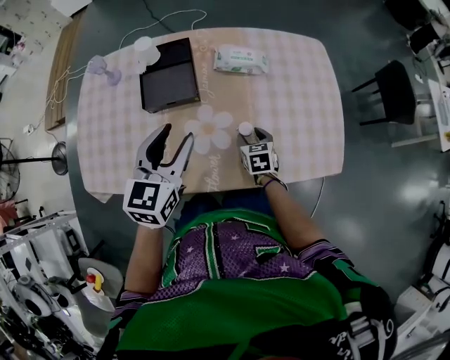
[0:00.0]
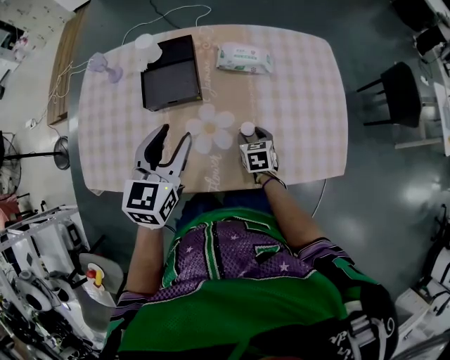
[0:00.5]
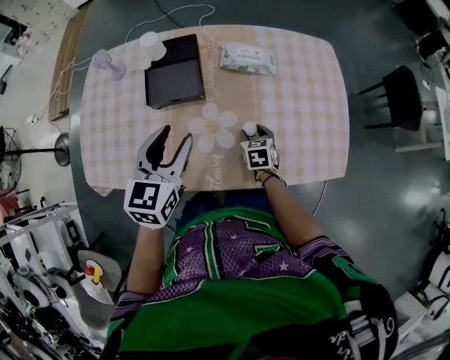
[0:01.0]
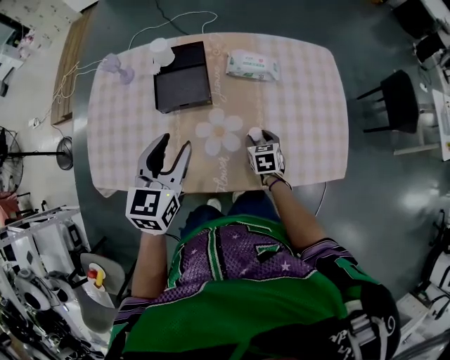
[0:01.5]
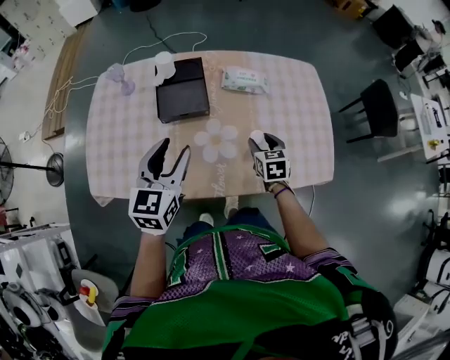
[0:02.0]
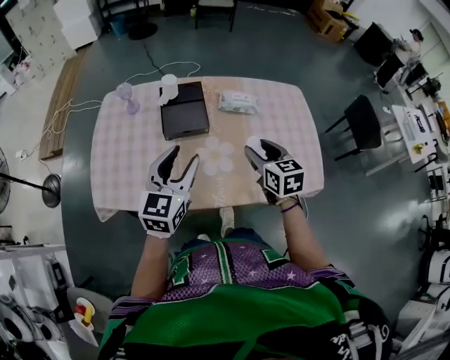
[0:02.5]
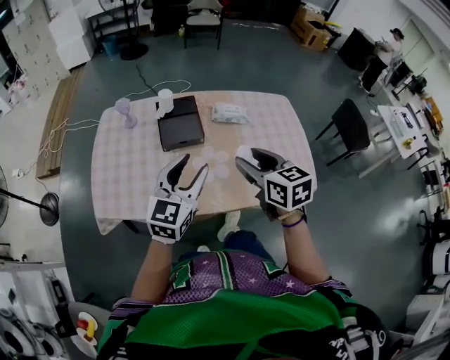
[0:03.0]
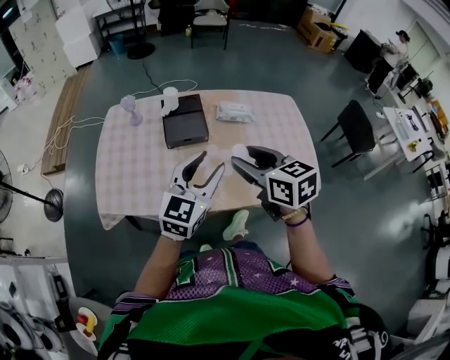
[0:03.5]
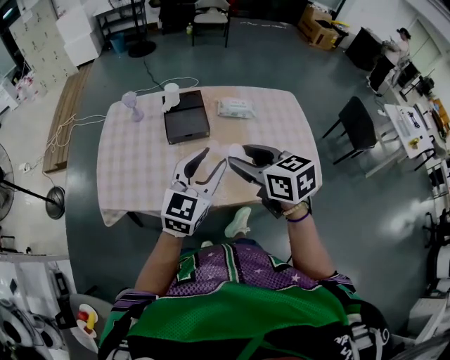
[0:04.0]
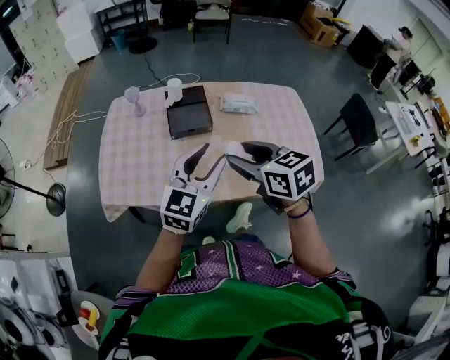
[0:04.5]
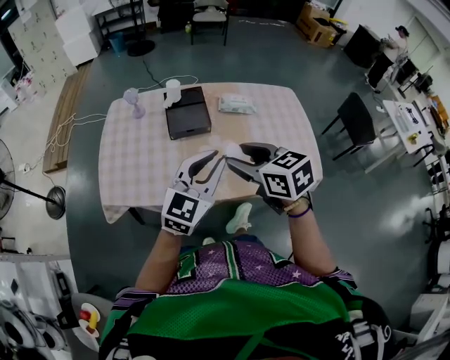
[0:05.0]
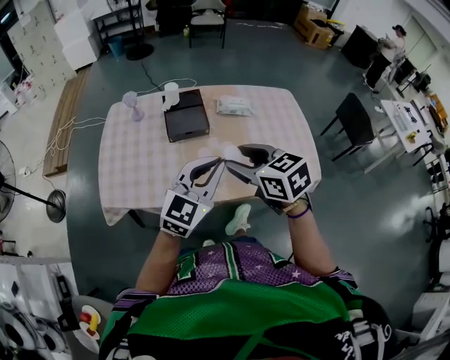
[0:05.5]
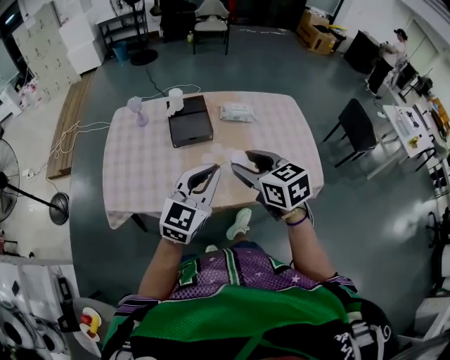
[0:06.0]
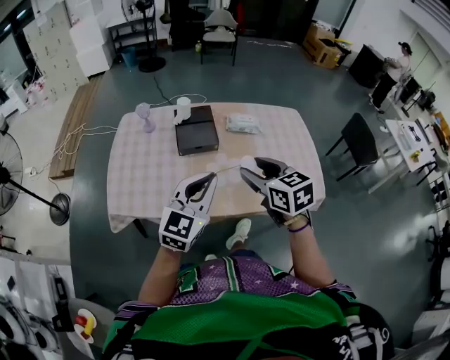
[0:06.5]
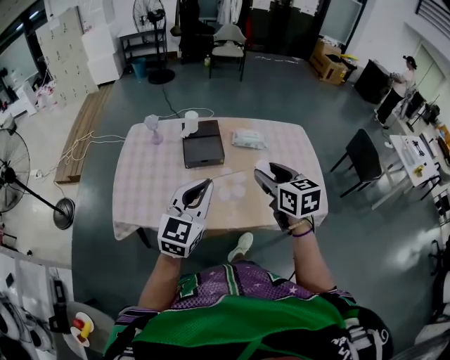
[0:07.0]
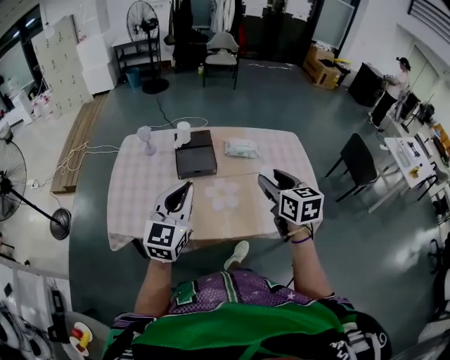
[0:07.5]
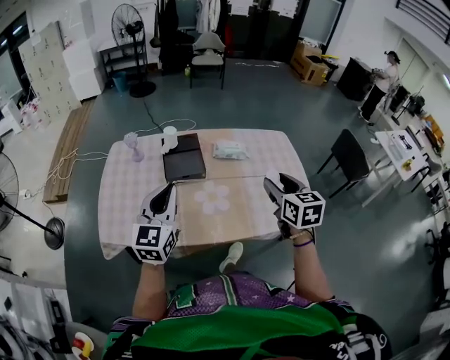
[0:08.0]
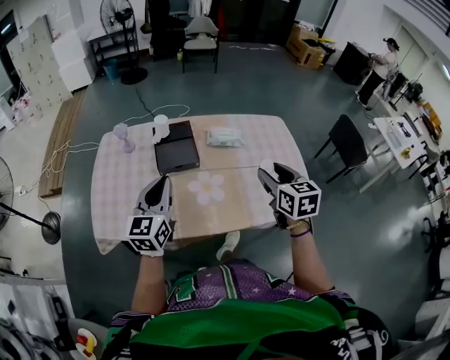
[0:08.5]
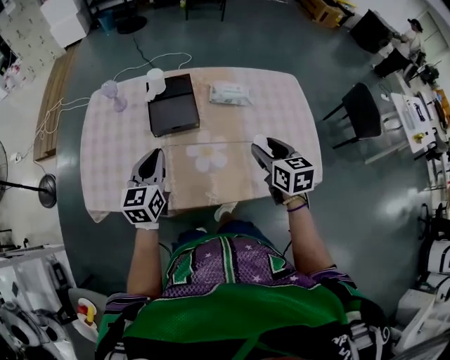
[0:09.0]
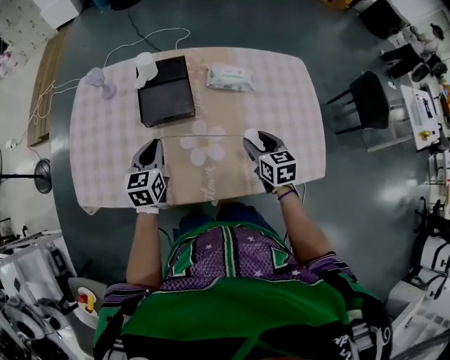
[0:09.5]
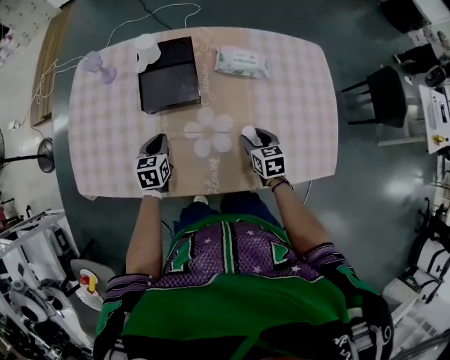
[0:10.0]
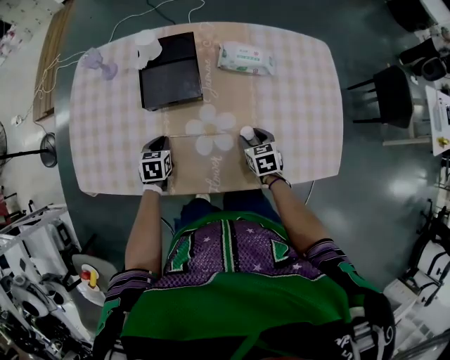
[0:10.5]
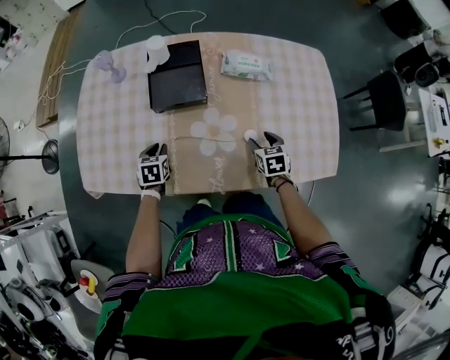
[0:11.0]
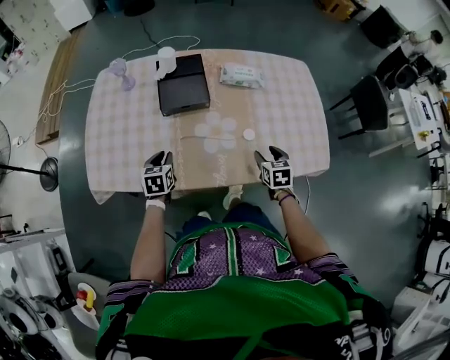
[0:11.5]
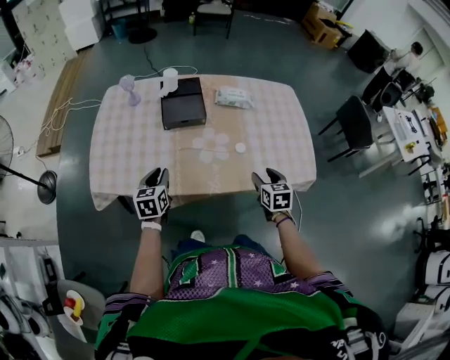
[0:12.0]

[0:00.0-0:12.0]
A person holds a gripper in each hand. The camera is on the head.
0:00.0 to 0:02.0: The left gripper moves to the left, approximately 5 cm; the right gripper shifts approximately 10 cm upward.
0:02.0 to 0:04.0: The left gripper travels backward, upward and to the right by roughly 15 cm, and turns by about 20 degrees; the right gripper shifts some 35 cm upward, backward and to the left, and rotates about 30 degrees.
0:04.0 to 0:06.0: The left gripper closes its fingers.
0:06.0 to 0:08.0: The right gripper travels to the right and forward by some 15 cm, and swivels about 20 degrees, while the left gripper goes some 10 cm to the left and forward, and changes its angle by approximately 20 degrees.
0:08.0 to 0:10.0: The right gripper heads downward, covering about 35 cm, and changes its angle by some 30 degrees, while the left gripper goes roughly 40 cm downward and forward, and points its fingers approximately 40 degrees further downward.
0:10.0 to 0:12.0: The grippers both shift backward and upward by about 20 cm.

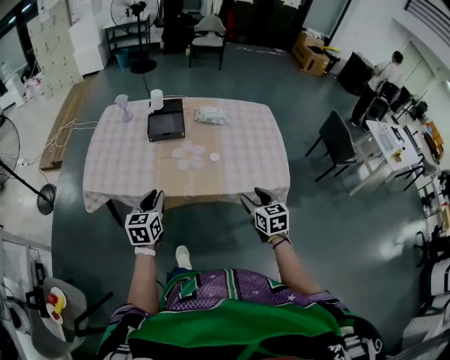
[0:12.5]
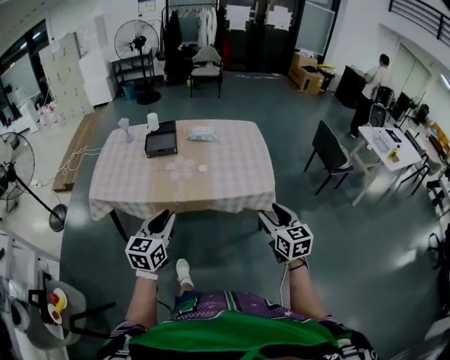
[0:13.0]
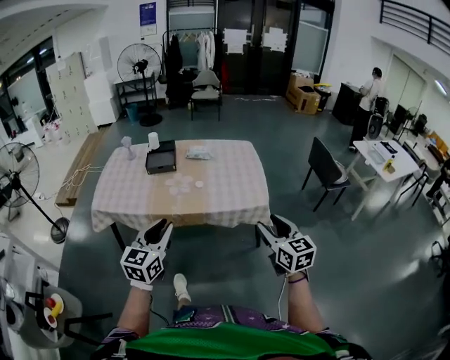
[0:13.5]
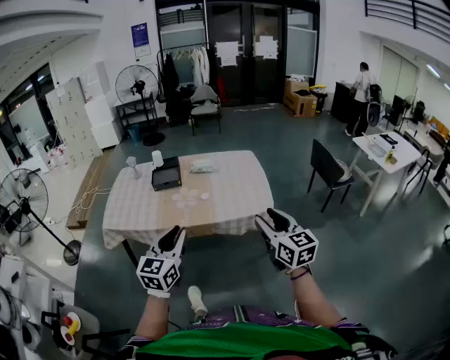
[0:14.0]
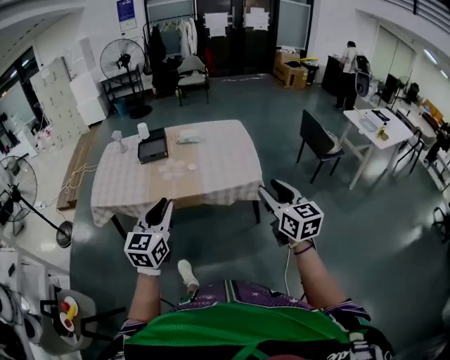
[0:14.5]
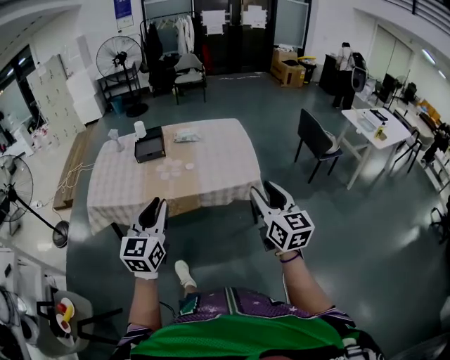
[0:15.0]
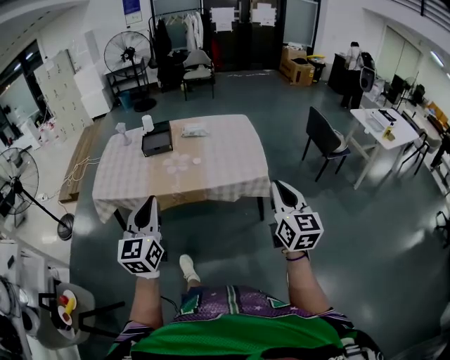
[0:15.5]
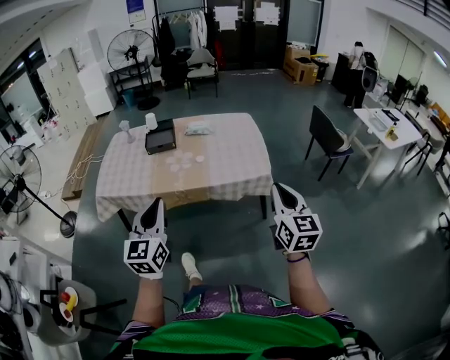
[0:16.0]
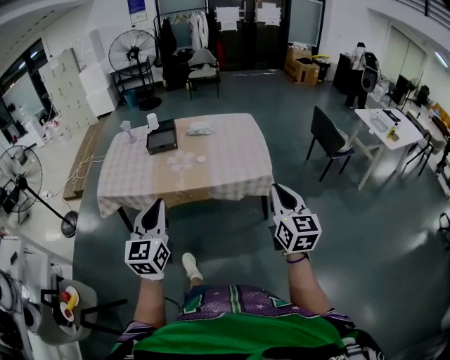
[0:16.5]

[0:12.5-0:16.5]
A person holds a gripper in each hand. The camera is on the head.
0:12.5 to 0:14.5: The left gripper heads backward, to the right and upward, covering roughly 40 cm, and rotates roughly 20 degrees. The right gripper is displaced backward, upward and to the right by approximately 35 cm, and swivels roughly 30 degrees.
0:14.5 to 0:16.5: The left gripper shifts by about 5 cm. The right gripper closes its fingers.

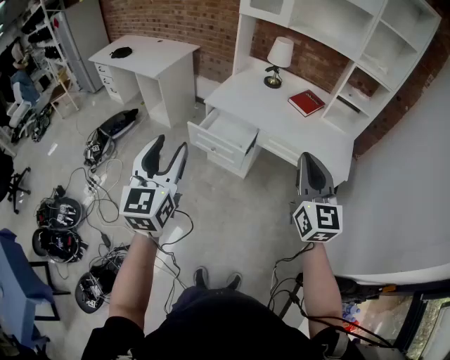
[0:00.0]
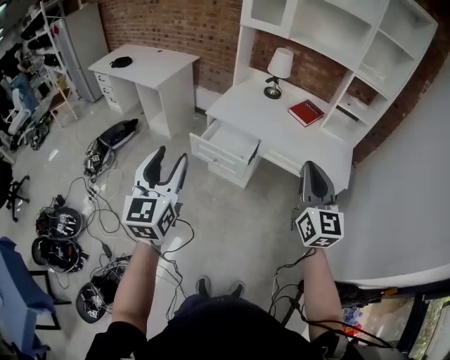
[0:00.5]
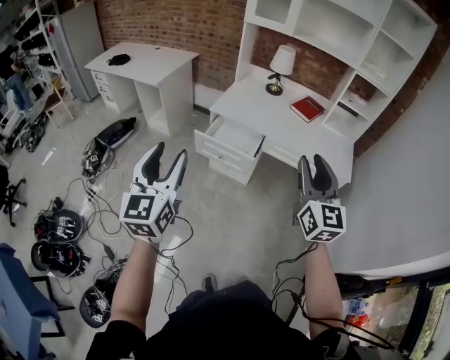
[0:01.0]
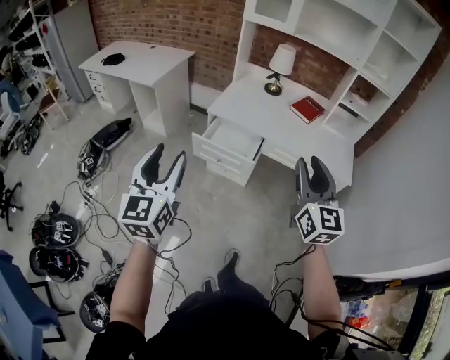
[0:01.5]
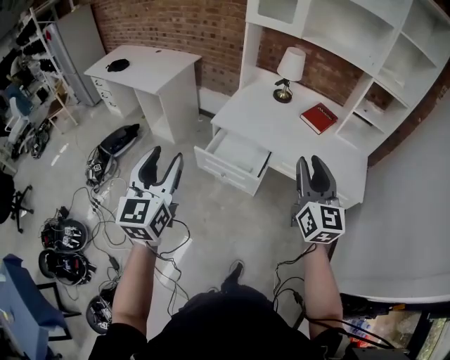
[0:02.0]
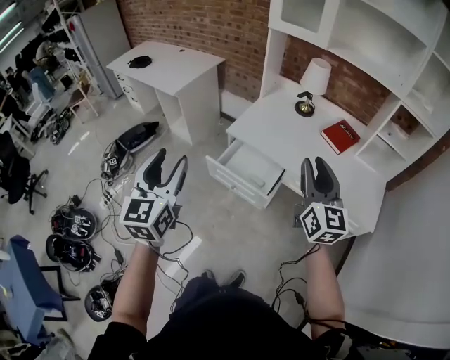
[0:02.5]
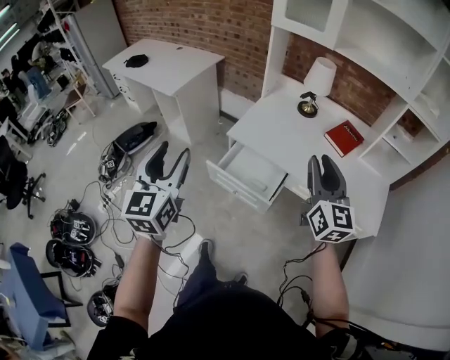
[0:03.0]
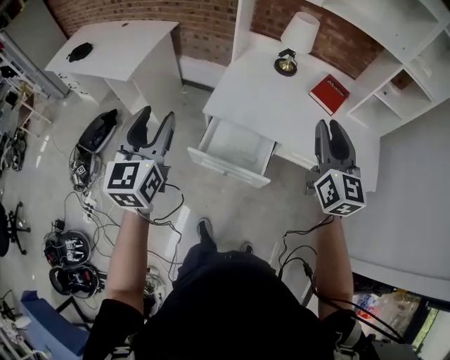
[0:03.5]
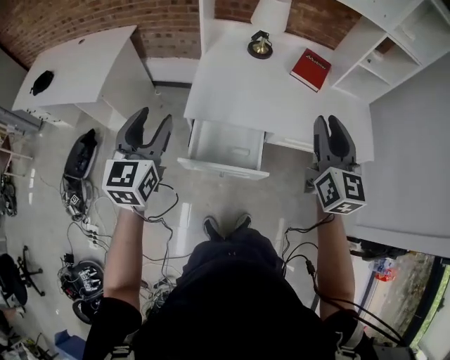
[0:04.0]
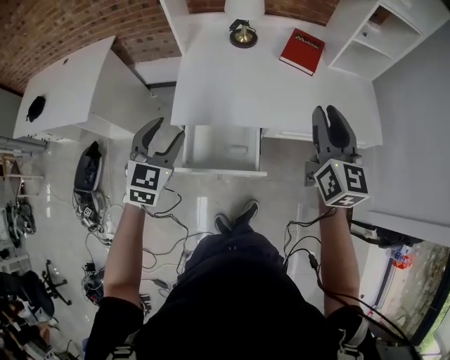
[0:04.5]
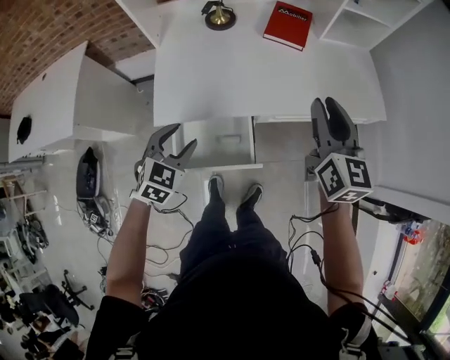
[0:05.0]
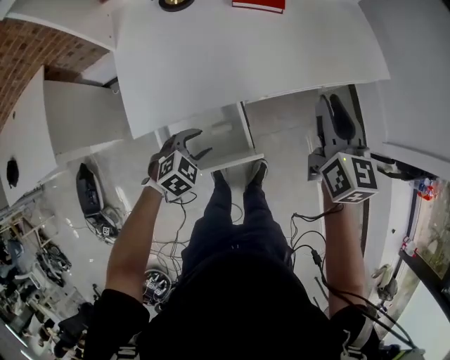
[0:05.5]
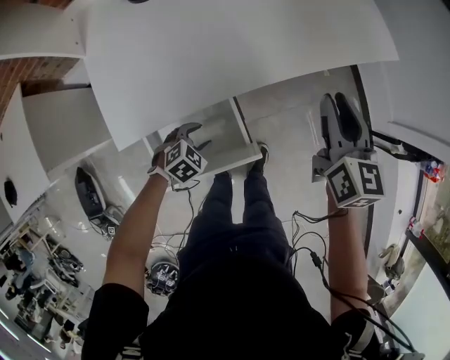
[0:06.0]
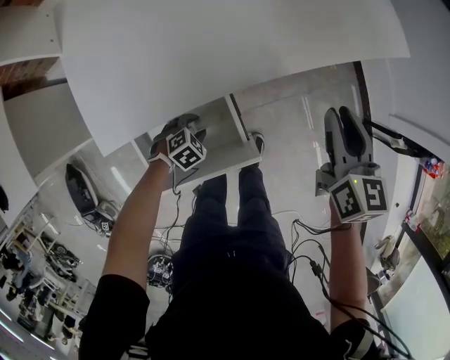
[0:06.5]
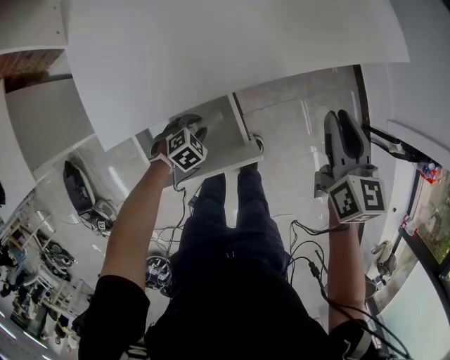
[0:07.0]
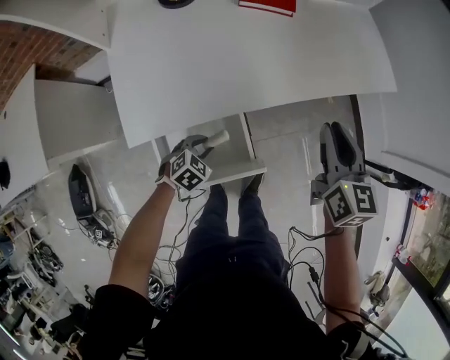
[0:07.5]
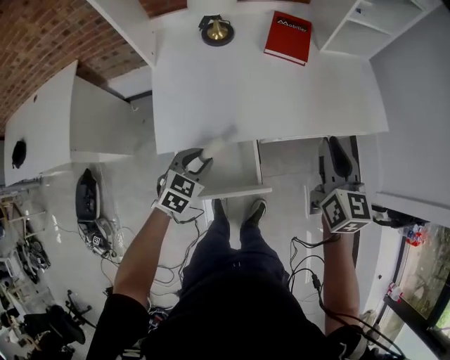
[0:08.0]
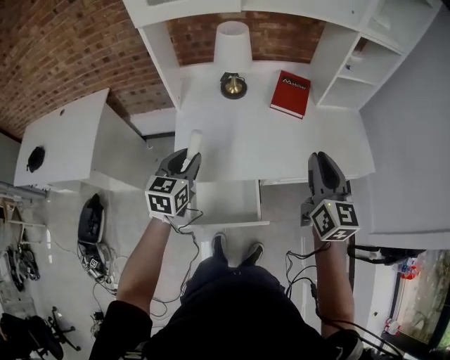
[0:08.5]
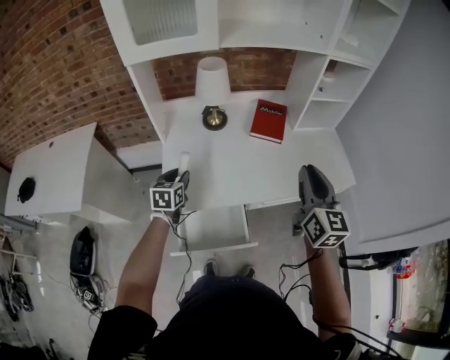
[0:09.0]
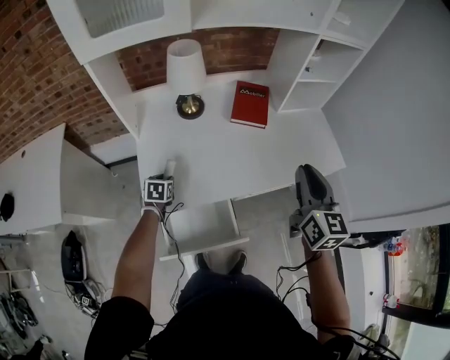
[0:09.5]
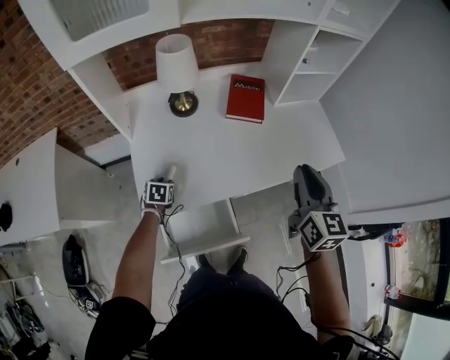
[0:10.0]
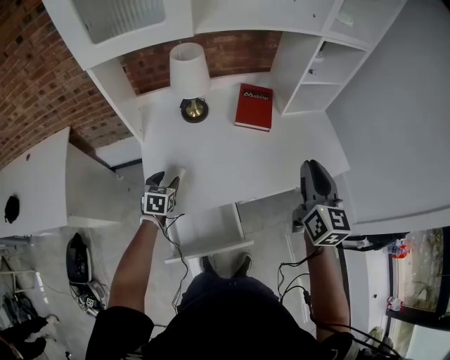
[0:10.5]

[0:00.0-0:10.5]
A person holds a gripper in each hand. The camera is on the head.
0:00.0 to 0:02.0: The left gripper travels forward and to the left by approximately 15 cm. The right gripper goes some 15 cm forward, and opens its fingers.
0:02.0 to 0:04.0: The right gripper ends up some 25 cm from where it was, and rotates roughly 20 degrees. Meanwhile the left gripper changes place by about 40 cm, and turns by some 20 degrees.
0:04.0 to 0:06.5: The left gripper moves downward, some 60 cm, and tips its fingers downward by some 60 degrees; the right gripper heads downward, covering about 35 cm, and turns by roughly 40 degrees.
0:06.5 to 0:08.5: The left gripper shifts about 50 cm upward, and angles its fingers upward, by approximately 50 degrees. The right gripper is displaced upward by some 30 cm, and swivels about 30 degrees.
0:08.5 to 0:10.5: The left gripper travels downward and forward by approximately 20 cm, and changes its angle by approximately 20 degrees. Meanwhile the right gripper goes about 10 cm forward and to the right.
